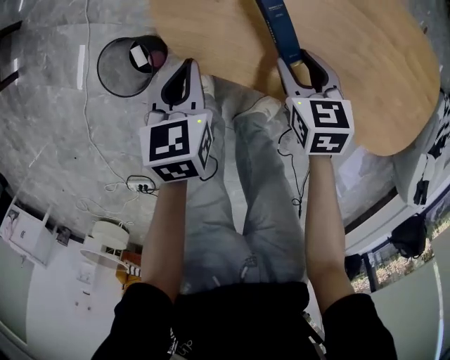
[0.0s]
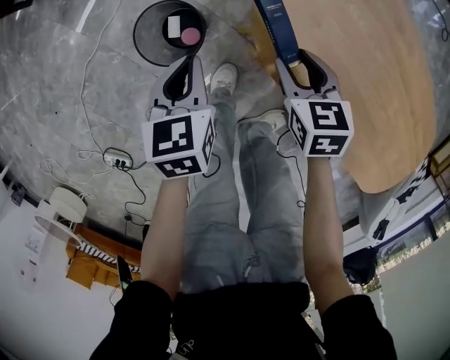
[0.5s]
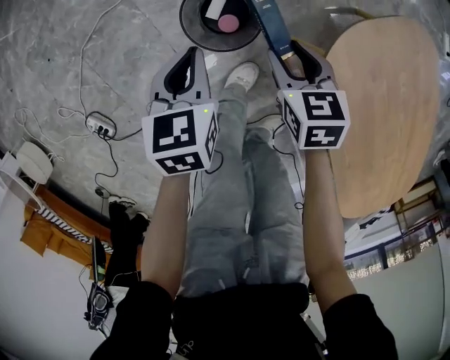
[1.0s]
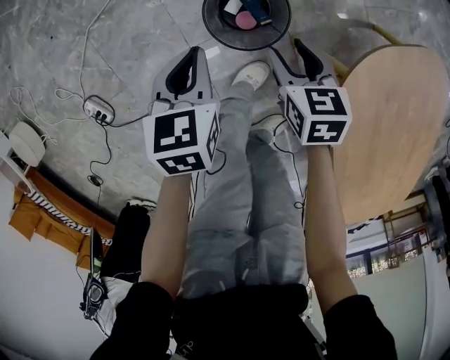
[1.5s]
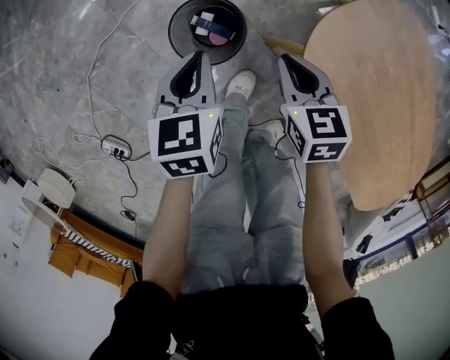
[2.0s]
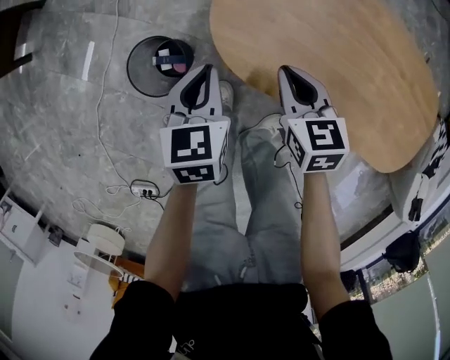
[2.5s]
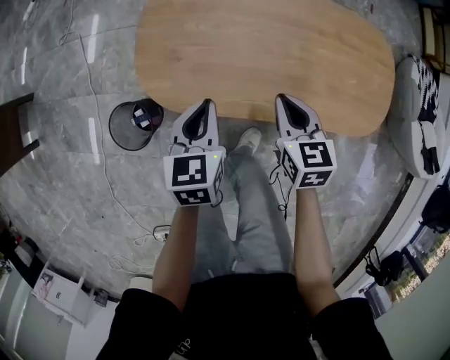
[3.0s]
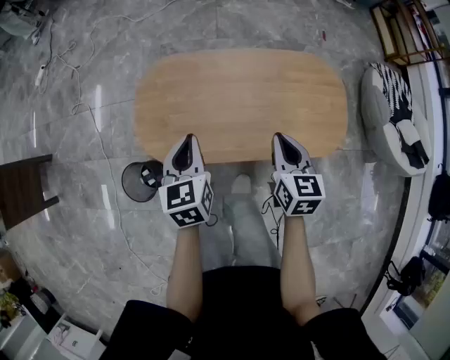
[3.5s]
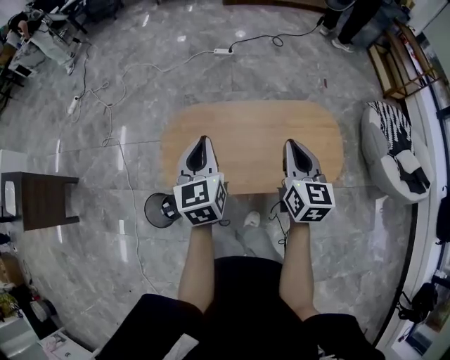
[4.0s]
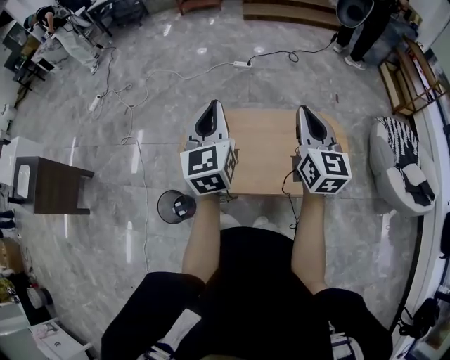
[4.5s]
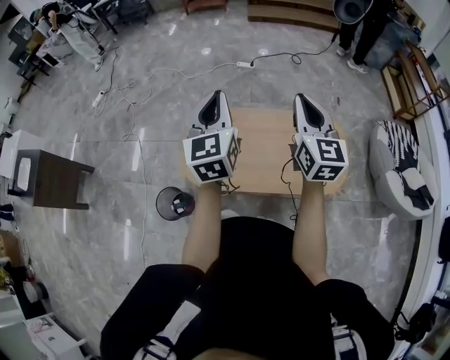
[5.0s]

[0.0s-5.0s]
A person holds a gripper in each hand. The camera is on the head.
0.0s to 2.5s: The right gripper closes up.
2.5s to 5.0s: Both grippers move upward, approximately 50 cm. The right gripper points its fingers roughly 40 degrees further upward; the left gripper tips its fingers upward by roughly 40 degrees.

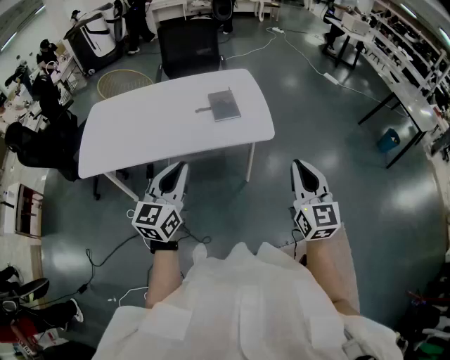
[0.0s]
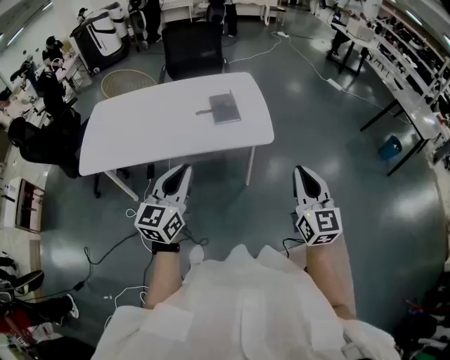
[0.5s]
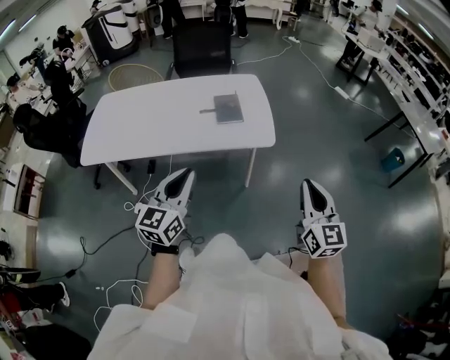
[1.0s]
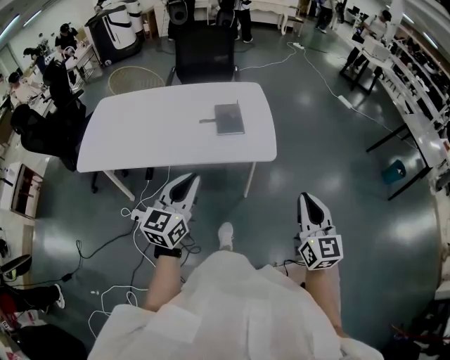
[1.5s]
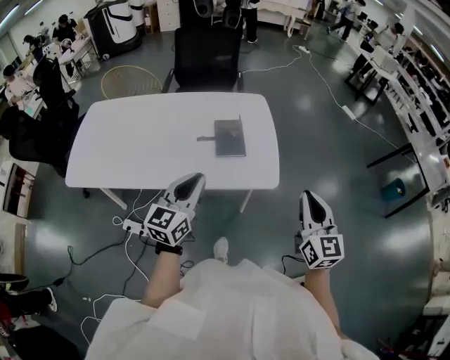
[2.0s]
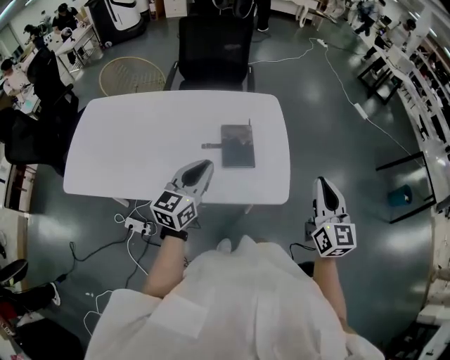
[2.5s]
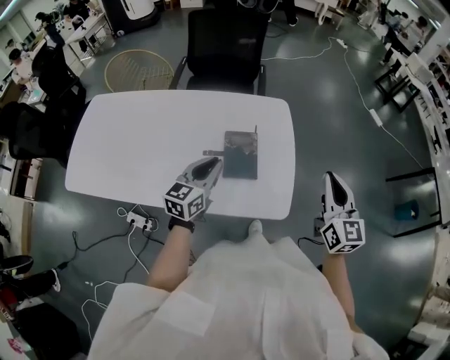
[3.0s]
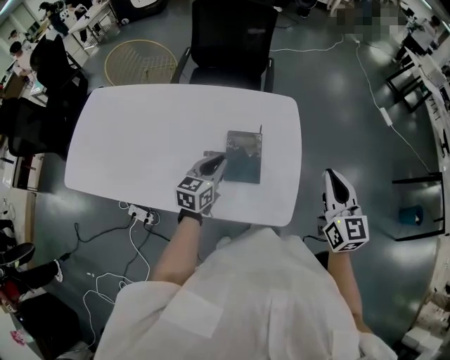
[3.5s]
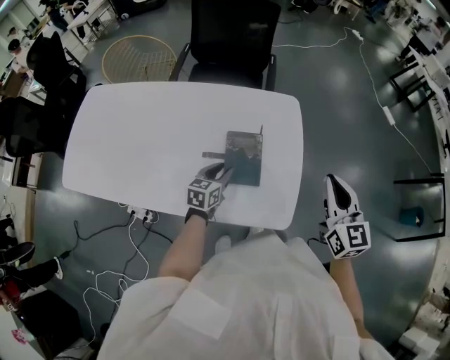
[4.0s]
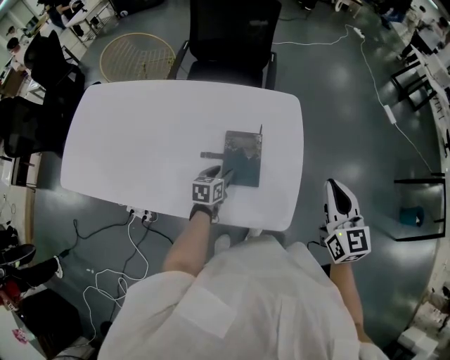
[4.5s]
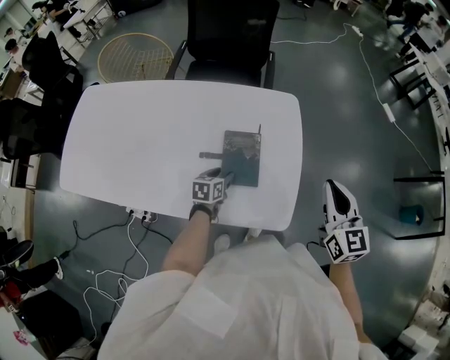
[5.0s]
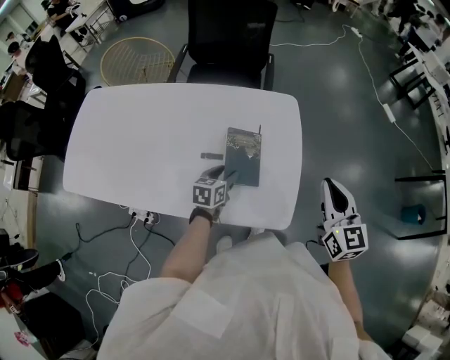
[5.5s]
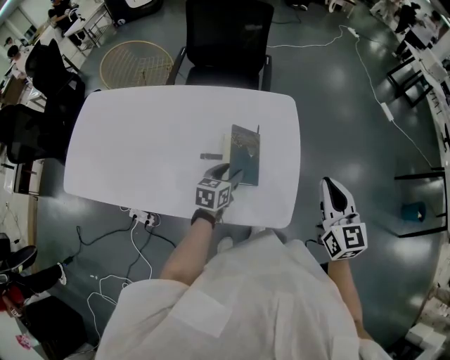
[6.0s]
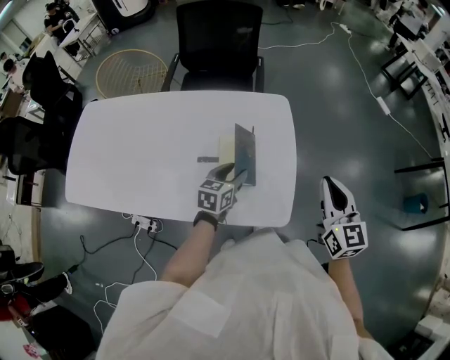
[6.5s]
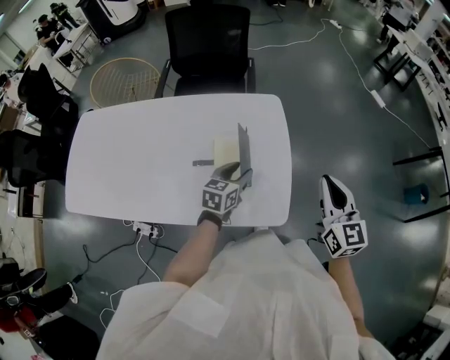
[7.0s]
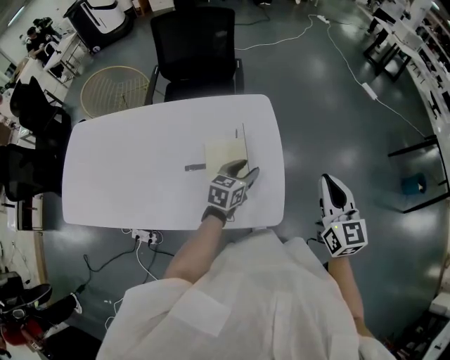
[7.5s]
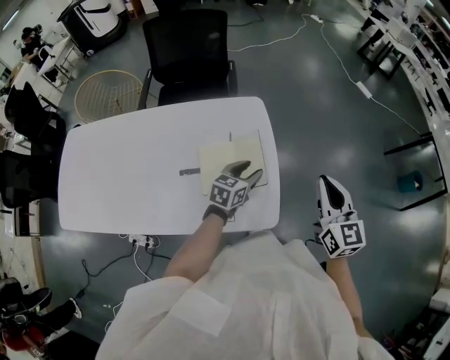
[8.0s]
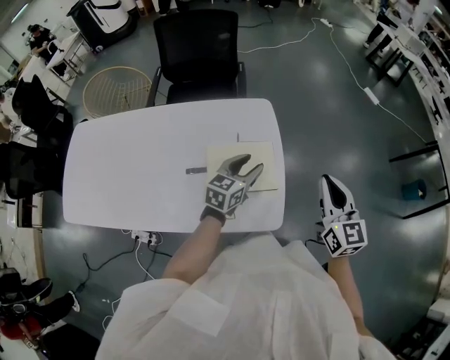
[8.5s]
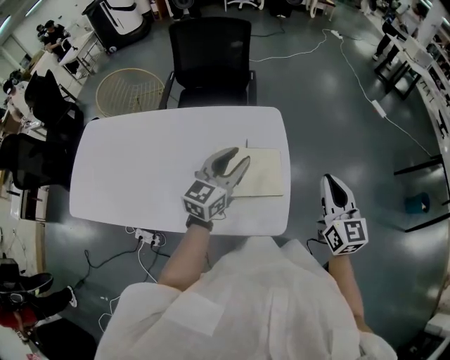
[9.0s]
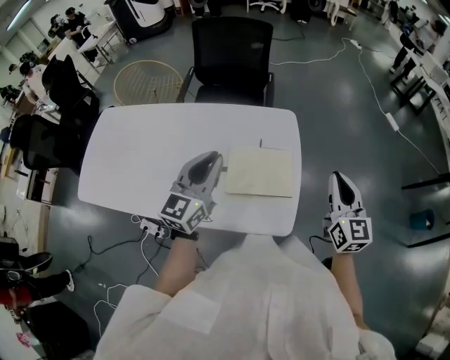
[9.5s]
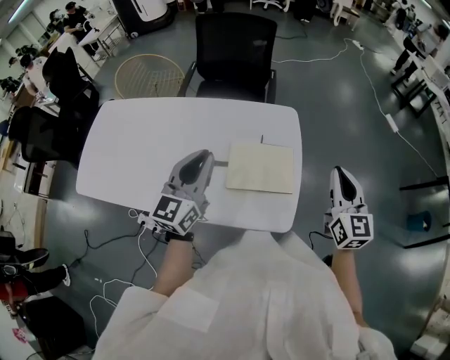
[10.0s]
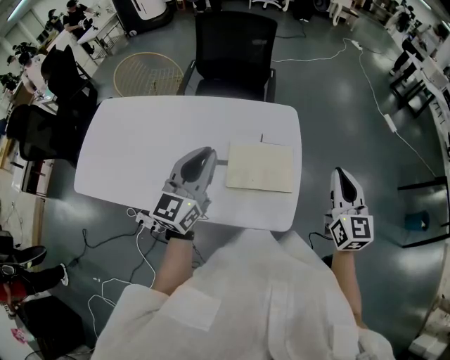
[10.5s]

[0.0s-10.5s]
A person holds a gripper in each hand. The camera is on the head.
0.0s to 2.0s: The grippers both shift forward by roughly 20 cm.
2.0s to 4.0s: The right gripper moves forward, approximately 35 cm. The left gripper moves forward and downward, about 40 cm, and rotates approximately 30 degrees.
4.0s to 6.5s: The left gripper goes about 5 cm to the right.
6.5s to 8.5s: The left gripper travels to the right, upward and forward by some 15 cm.
8.5s to 10.5s: The left gripper shifts approximately 25 cm to the left, upward and backward, swivels approximately 40 degrees, and closes its fingers.

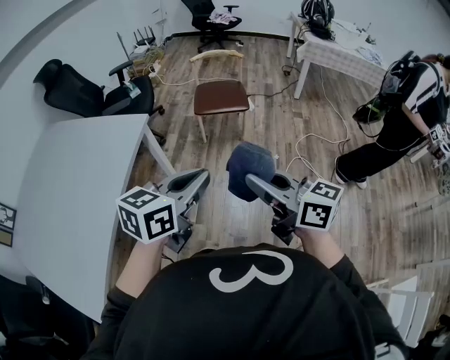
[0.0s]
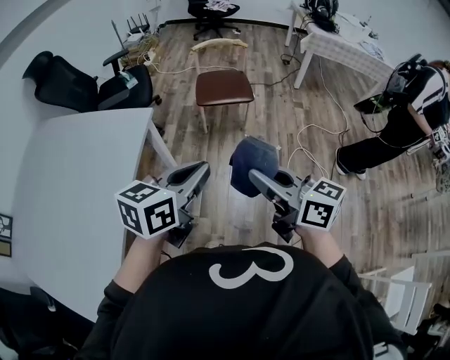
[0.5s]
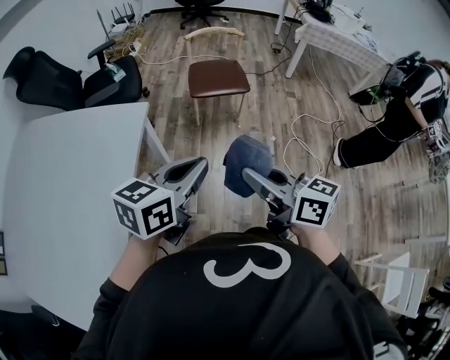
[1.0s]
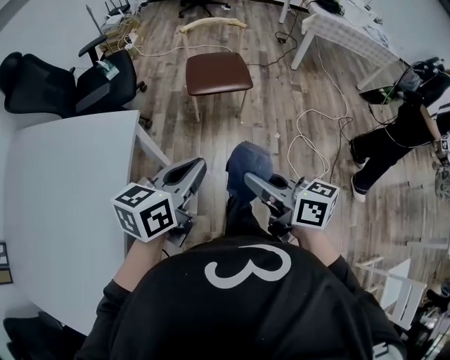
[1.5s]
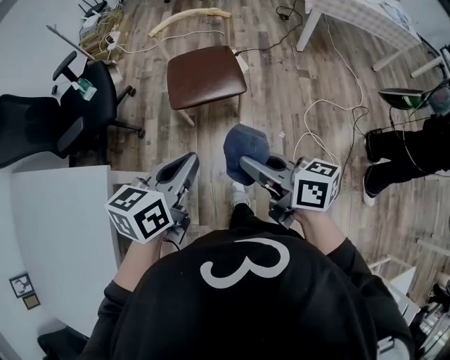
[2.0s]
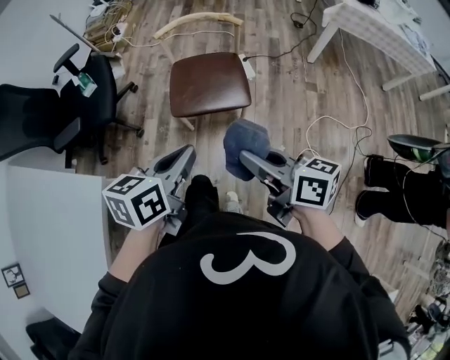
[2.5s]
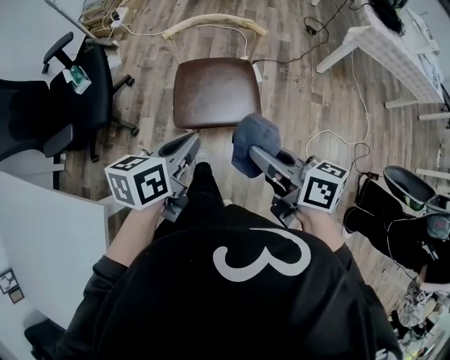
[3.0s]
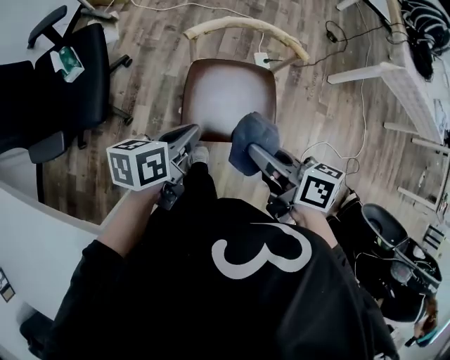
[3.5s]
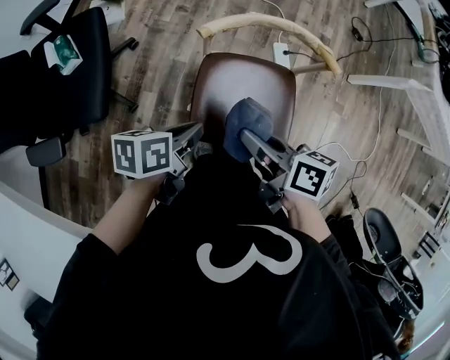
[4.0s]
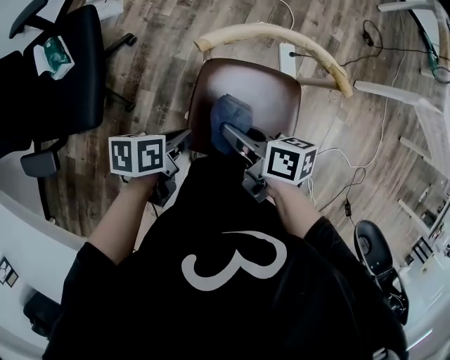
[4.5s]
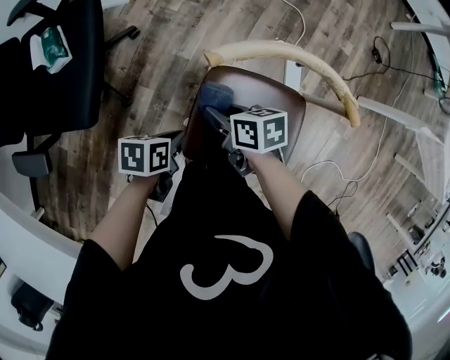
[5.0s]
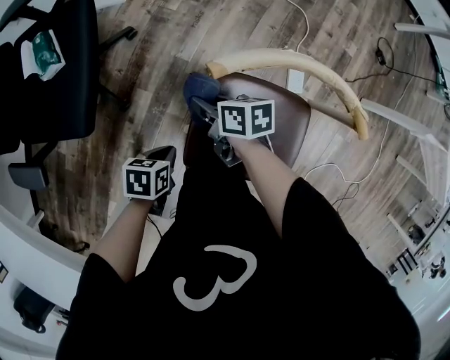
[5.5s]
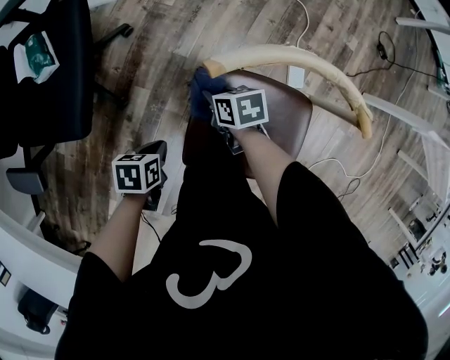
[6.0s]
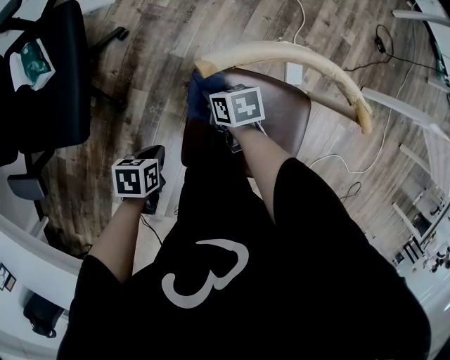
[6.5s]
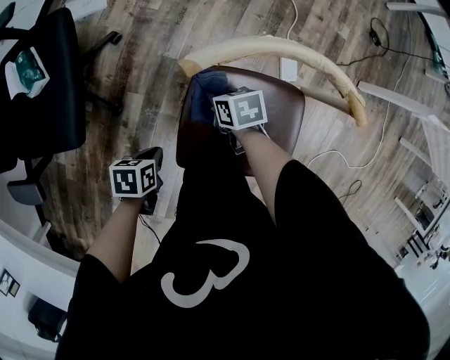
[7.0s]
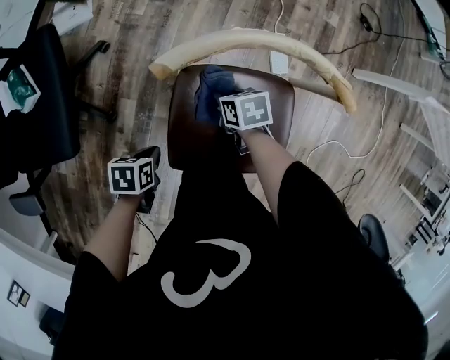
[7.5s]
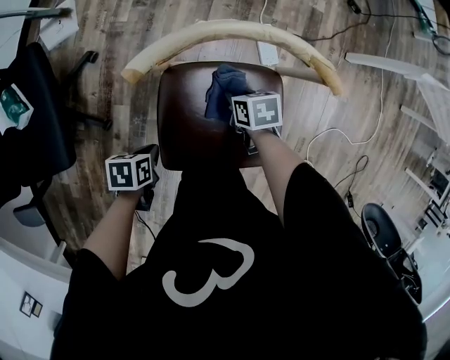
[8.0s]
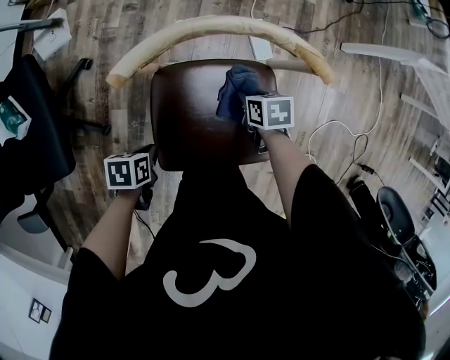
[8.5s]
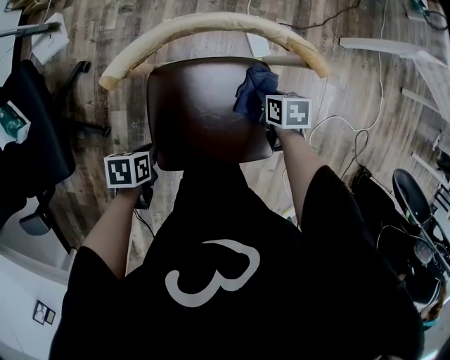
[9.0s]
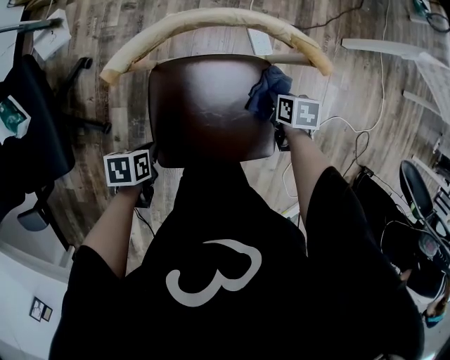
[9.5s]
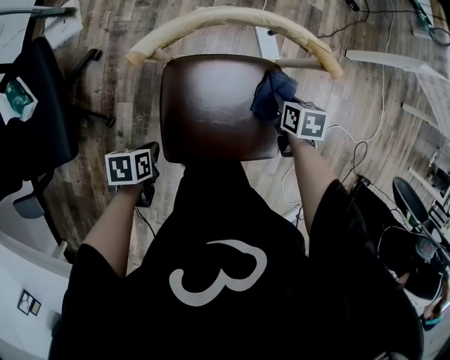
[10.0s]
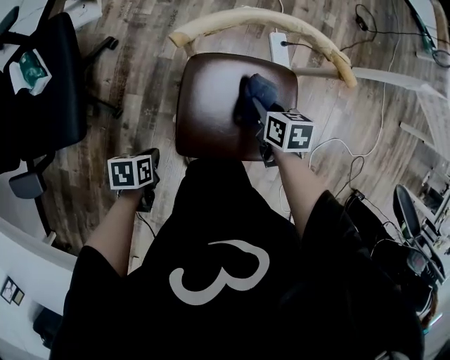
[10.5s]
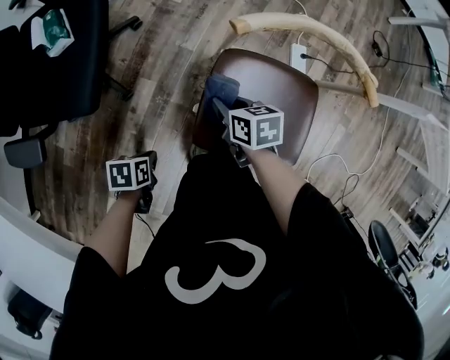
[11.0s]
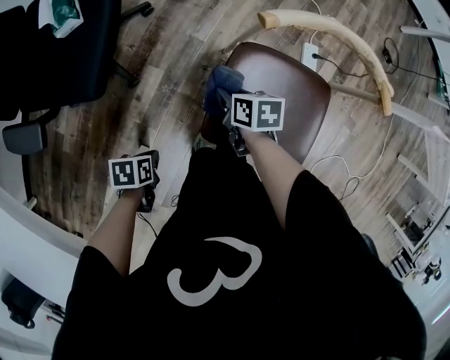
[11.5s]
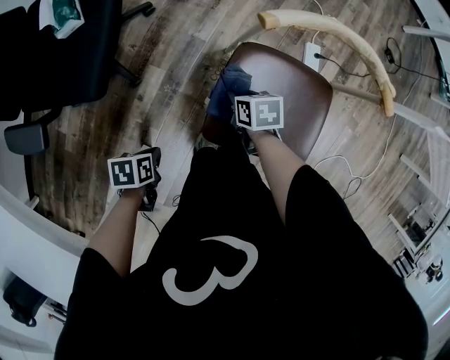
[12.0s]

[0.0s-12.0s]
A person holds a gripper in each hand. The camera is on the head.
0.0s to 2.0s: The right gripper changes place by roughly 40 cm, and turns by about 20 degrees.
2.0s to 4.0s: The right gripper ends up approximately 50 cm from where it was, and changes its angle by some 20 degrees.
4.0s to 6.0s: The right gripper moves downward, some 30 cm, and swivels roughly 40 degrees.
6.0s to 8.0s: The right gripper ends up roughly 20 cm from where it was.
8.0s to 10.0s: The right gripper moves approximately 15 cm.
10.0s to 12.0s: The right gripper shifts by some 30 cm, and changes its angle by approximately 30 degrees.
